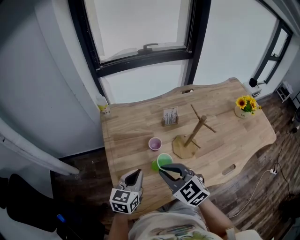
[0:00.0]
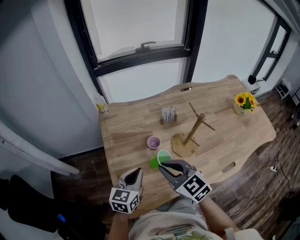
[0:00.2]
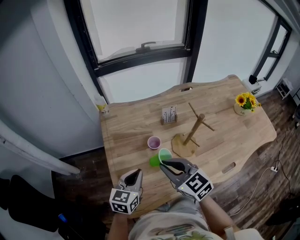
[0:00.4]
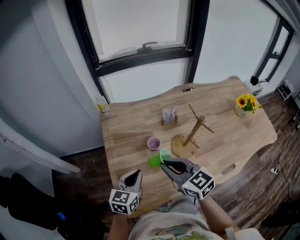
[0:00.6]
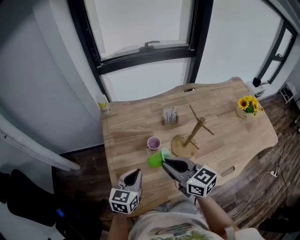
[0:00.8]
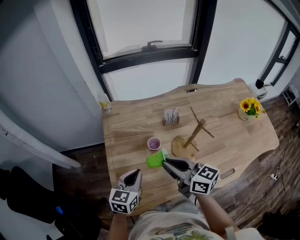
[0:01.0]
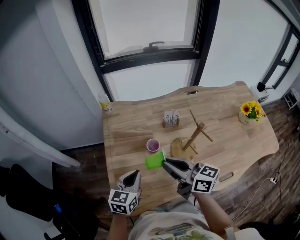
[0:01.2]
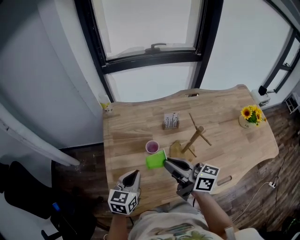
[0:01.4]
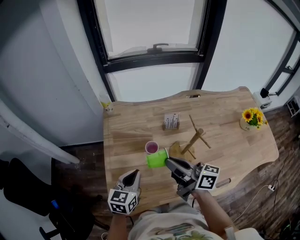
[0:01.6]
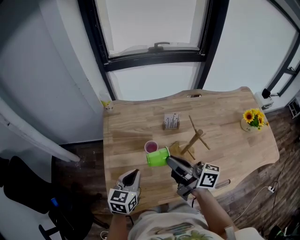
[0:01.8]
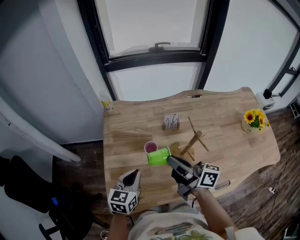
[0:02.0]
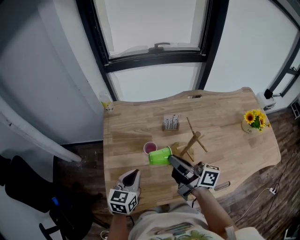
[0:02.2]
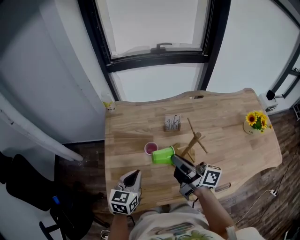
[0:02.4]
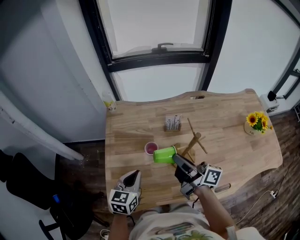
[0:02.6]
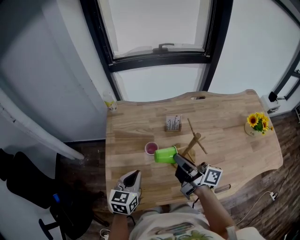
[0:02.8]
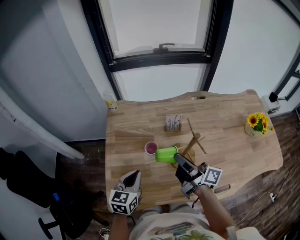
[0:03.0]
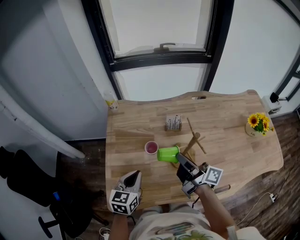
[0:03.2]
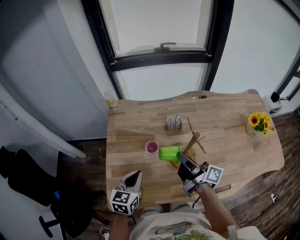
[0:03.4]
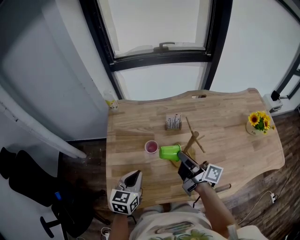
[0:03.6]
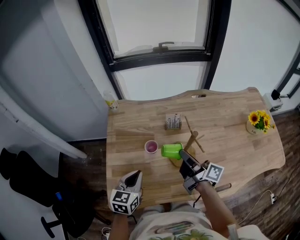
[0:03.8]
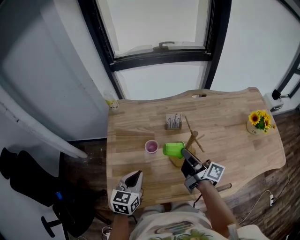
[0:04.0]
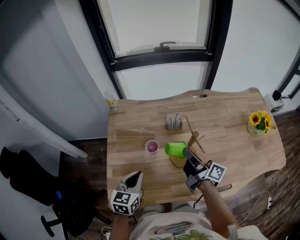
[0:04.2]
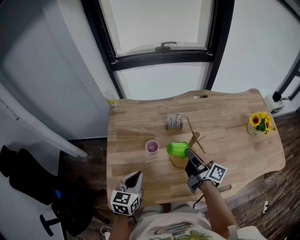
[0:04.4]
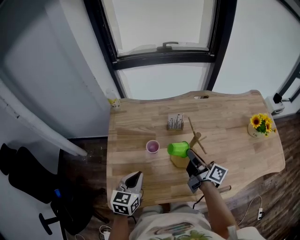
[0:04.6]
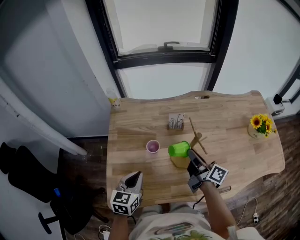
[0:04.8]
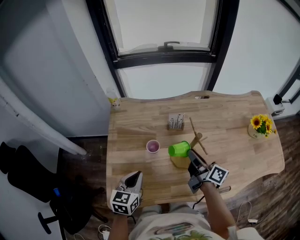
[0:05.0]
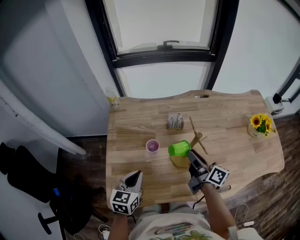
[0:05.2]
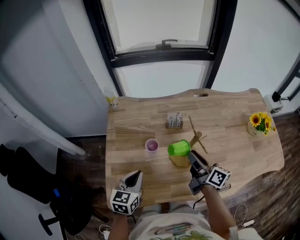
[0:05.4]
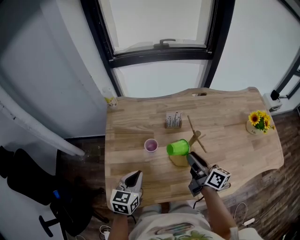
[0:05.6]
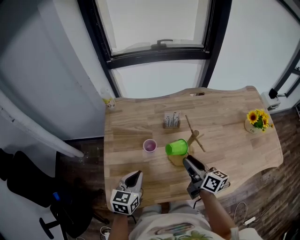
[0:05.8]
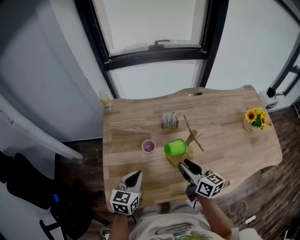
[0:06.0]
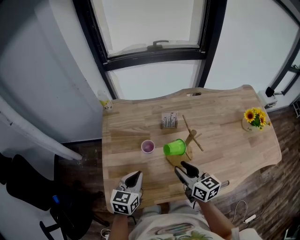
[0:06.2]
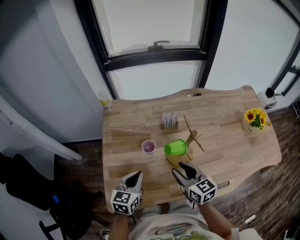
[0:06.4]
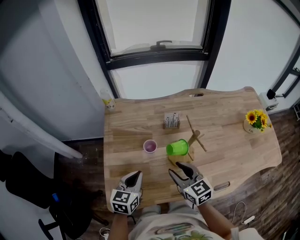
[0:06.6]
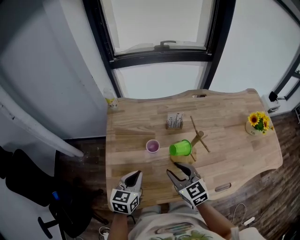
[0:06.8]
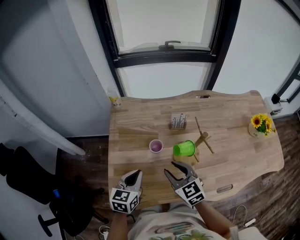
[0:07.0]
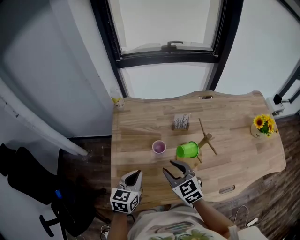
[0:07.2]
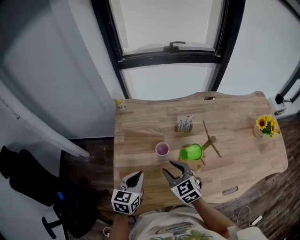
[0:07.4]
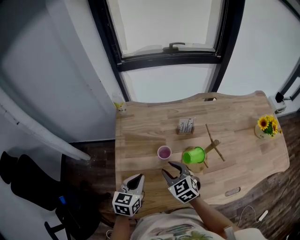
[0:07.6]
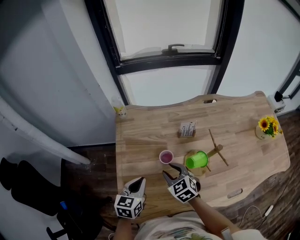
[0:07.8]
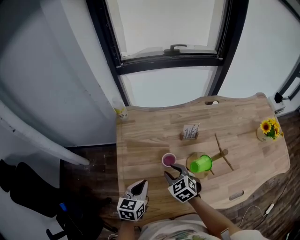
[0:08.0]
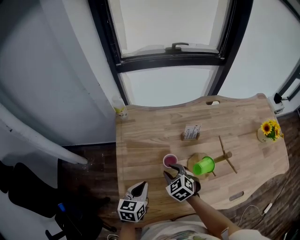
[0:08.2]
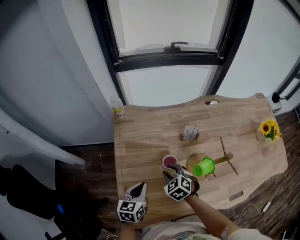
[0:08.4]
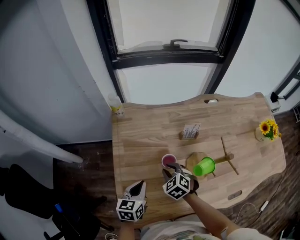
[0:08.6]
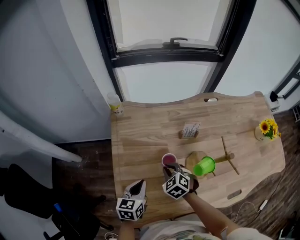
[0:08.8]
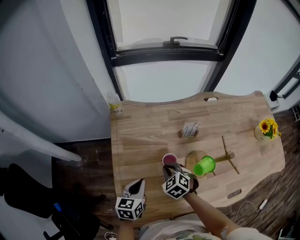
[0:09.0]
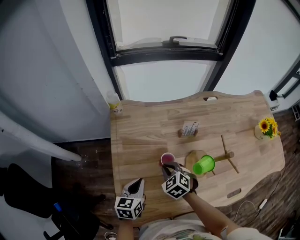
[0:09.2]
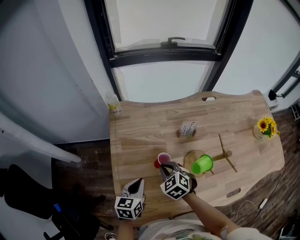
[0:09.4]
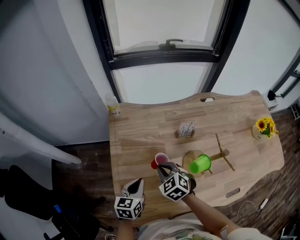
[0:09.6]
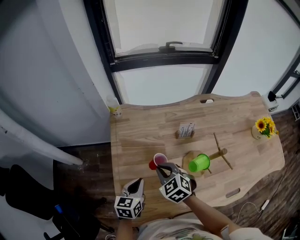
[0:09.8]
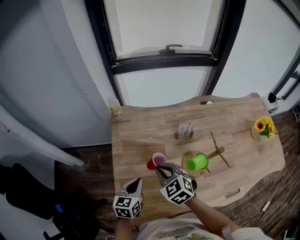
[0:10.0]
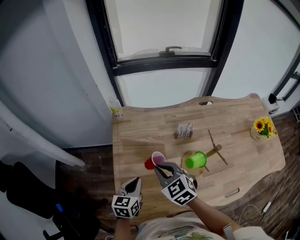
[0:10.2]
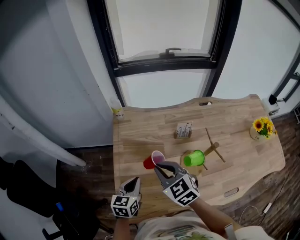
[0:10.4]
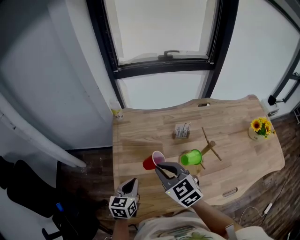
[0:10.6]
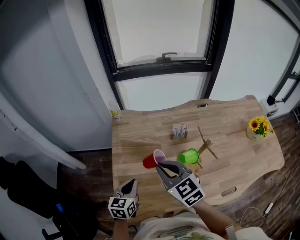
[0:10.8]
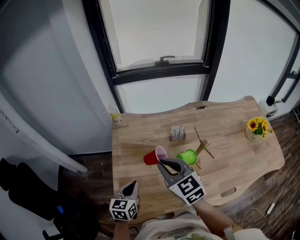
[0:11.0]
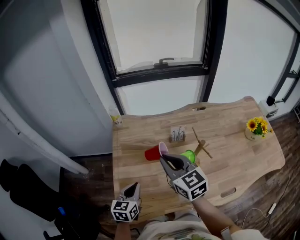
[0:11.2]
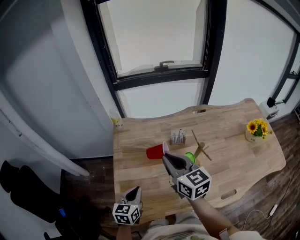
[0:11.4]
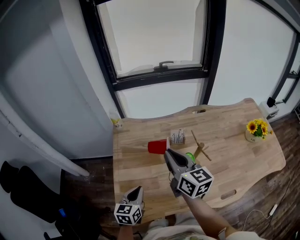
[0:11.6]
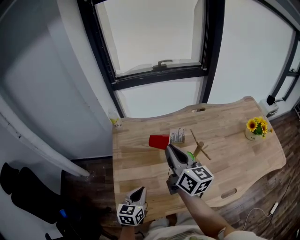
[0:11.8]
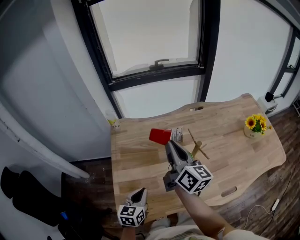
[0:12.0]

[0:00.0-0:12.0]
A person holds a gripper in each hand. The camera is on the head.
0:00.0 to 0:01.6: The right gripper moves to the right and upward, about 10 cm, and rotates around the line of its fingers by approximately 50 degrees, clockwise from behind.
0:01.6 to 0:03.0: The right gripper goes some 5 cm to the right.
0:03.0 to 0:04.4: The right gripper shifts some 5 cm to the right.
0:04.4 to 0:06.0: The right gripper heads backward, covering roughly 5 cm, rotates roughly 30 degrees, and opens up.
0:06.0 to 0:07.6: The right gripper is displaced to the left by roughly 15 cm, and rolls counterclockwise, seen from behind, by about 40 degrees; the left gripper moves to the left, about 5 cm.
0:07.6 to 0:09.0: The left gripper is displaced downward by about 5 cm. The right gripper heads downward and forward, covering some 10 cm, changes its angle by roughly 20 degrees, and closes up.
0:09.0 to 0:10.4: The right gripper heads upward, covering some 20 cm, and rotates approximately 30 degrees. The left gripper travels upward by some 5 cm.
0:10.4 to 0:12.0: The left gripper travels to the right and backward by some 10 cm; the right gripper moves to the right and upward, some 20 cm, and points its fingers roughly 40 degrees further upward.

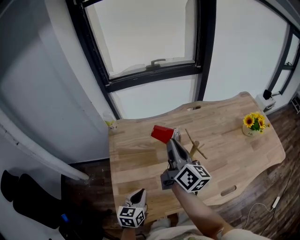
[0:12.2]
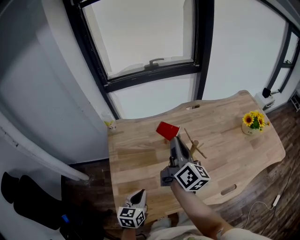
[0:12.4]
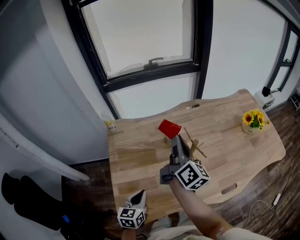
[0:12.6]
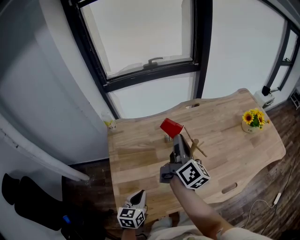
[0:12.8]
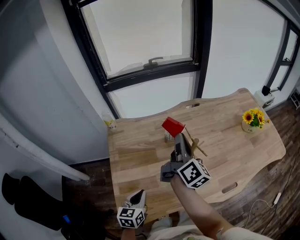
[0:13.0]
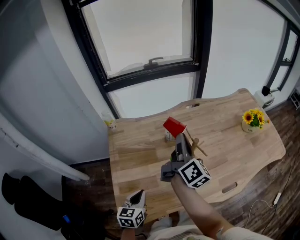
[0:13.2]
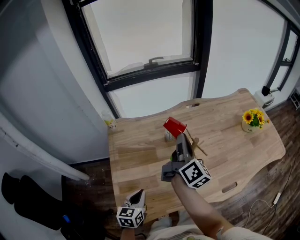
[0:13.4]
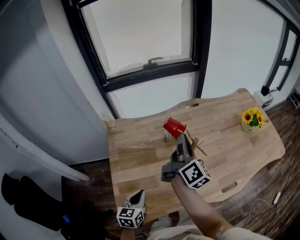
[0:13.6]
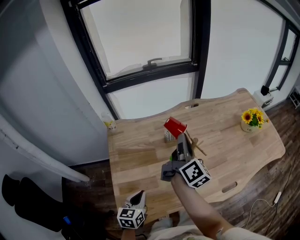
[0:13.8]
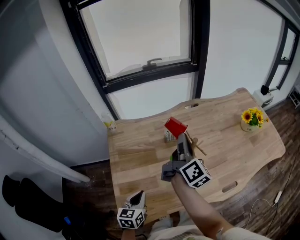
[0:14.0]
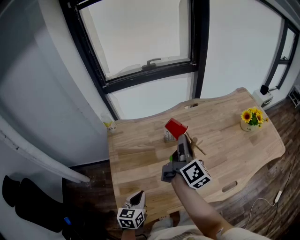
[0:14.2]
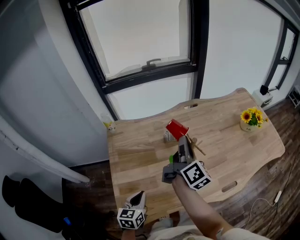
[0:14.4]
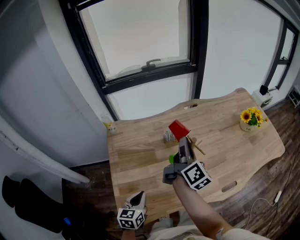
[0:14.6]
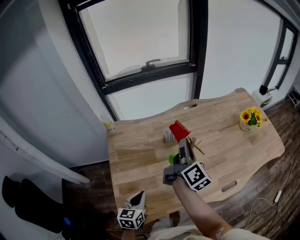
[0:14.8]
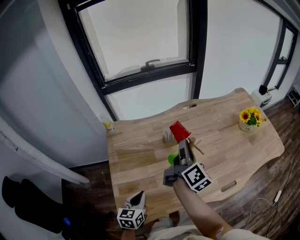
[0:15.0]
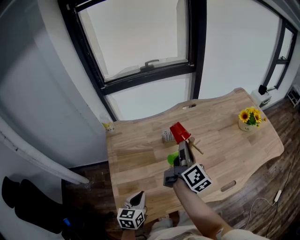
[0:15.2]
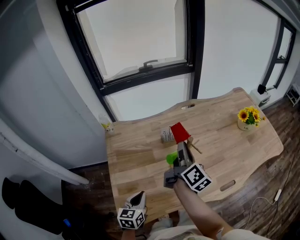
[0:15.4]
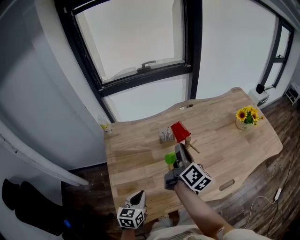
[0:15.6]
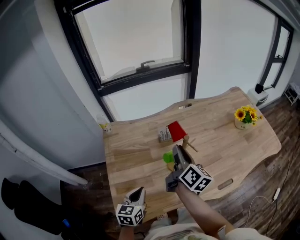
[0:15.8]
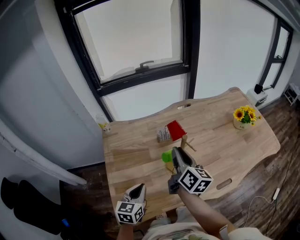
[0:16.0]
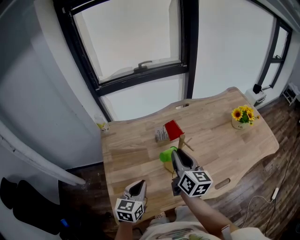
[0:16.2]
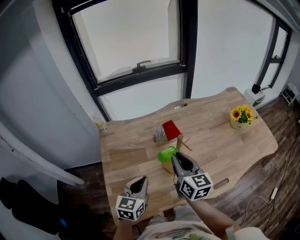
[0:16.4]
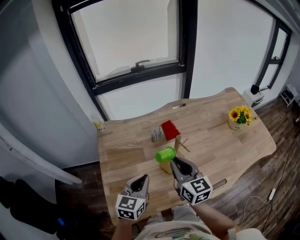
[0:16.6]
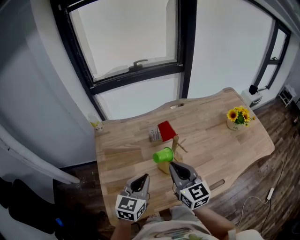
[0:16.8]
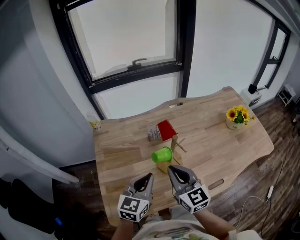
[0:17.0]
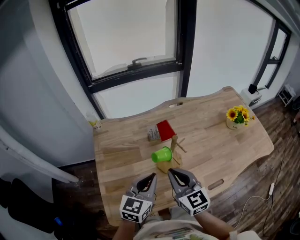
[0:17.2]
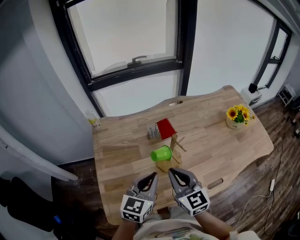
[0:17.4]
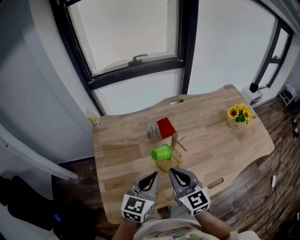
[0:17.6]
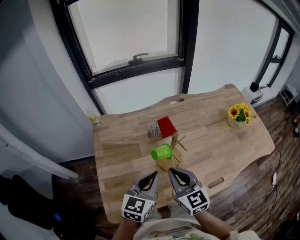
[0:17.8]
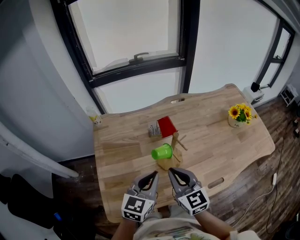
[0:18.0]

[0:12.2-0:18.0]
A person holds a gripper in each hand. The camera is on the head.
0:12.2 to 0:13.6: The right gripper goes approximately 5 cm to the right.
0:13.6 to 0:15.0: The grippers move only a little.
0:15.0 to 0:16.6: The left gripper goes about 15 cm upward, to the right and forward, while the right gripper is displaced backward by some 10 cm, and rotates around the line of its fingers by about 50 degrees, counterclockwise from behind.
0:16.6 to 0:18.0: The left gripper travels to the right by roughly 5 cm.

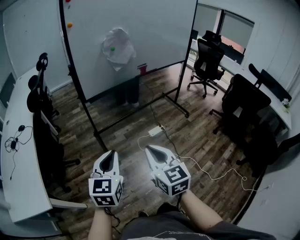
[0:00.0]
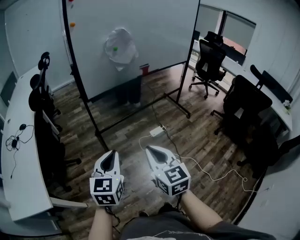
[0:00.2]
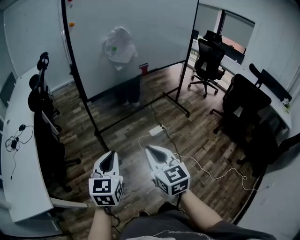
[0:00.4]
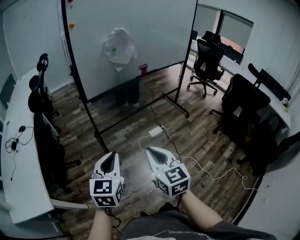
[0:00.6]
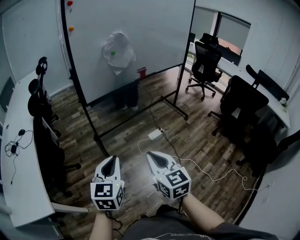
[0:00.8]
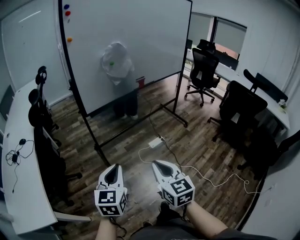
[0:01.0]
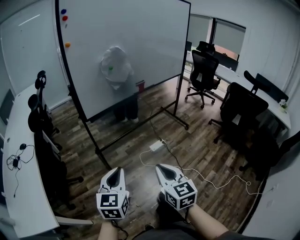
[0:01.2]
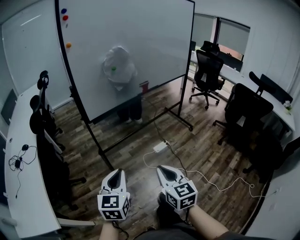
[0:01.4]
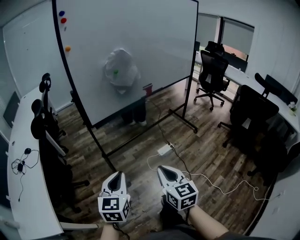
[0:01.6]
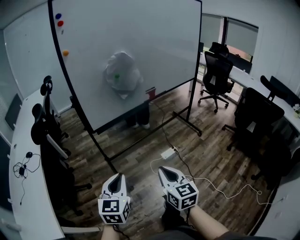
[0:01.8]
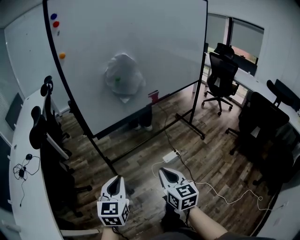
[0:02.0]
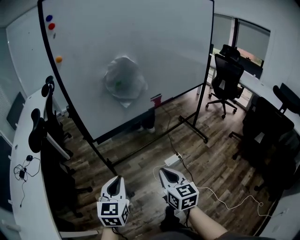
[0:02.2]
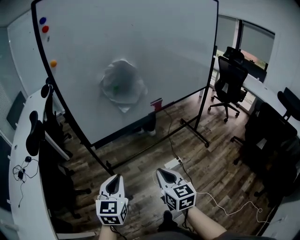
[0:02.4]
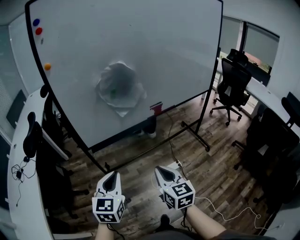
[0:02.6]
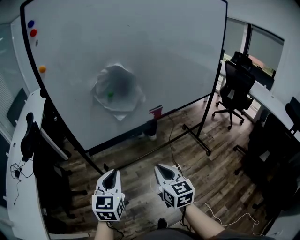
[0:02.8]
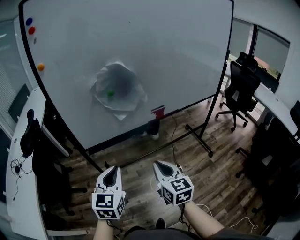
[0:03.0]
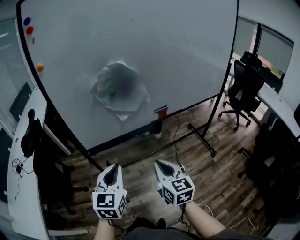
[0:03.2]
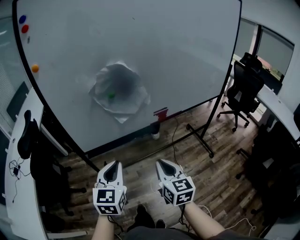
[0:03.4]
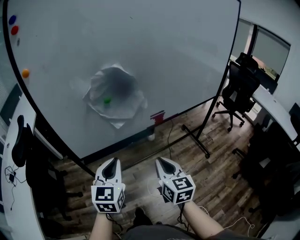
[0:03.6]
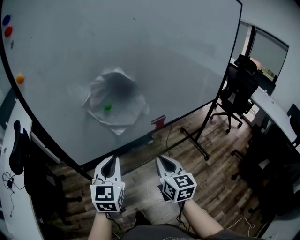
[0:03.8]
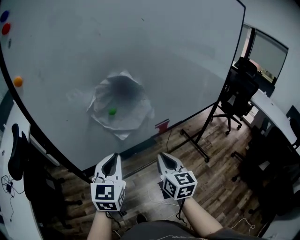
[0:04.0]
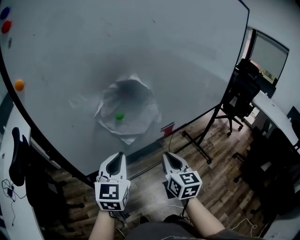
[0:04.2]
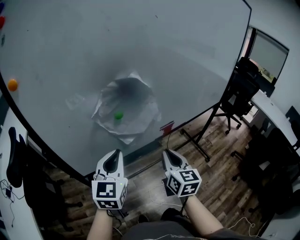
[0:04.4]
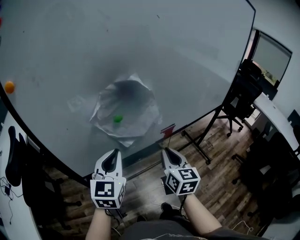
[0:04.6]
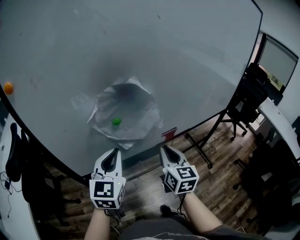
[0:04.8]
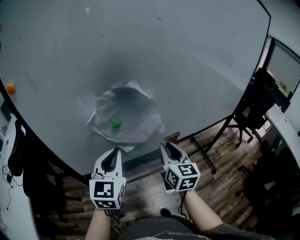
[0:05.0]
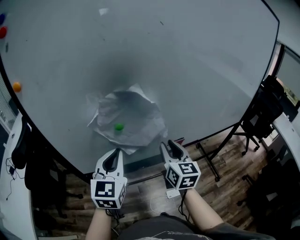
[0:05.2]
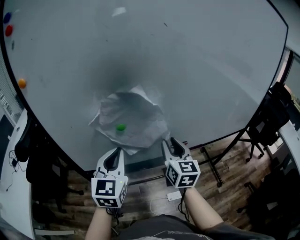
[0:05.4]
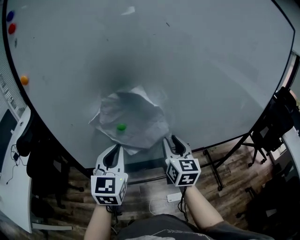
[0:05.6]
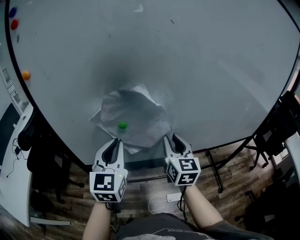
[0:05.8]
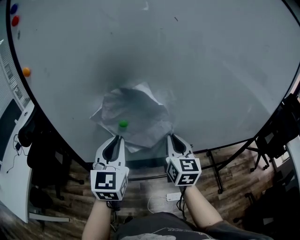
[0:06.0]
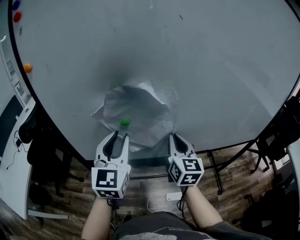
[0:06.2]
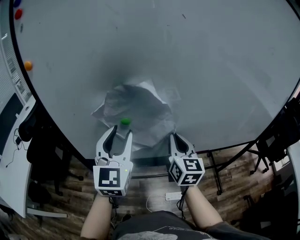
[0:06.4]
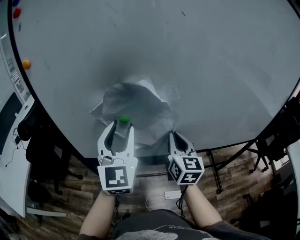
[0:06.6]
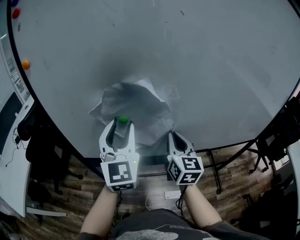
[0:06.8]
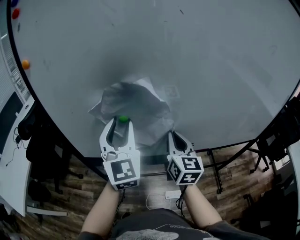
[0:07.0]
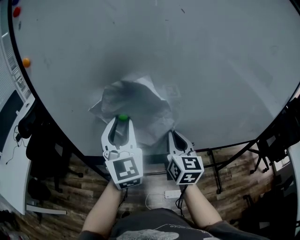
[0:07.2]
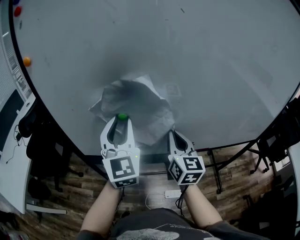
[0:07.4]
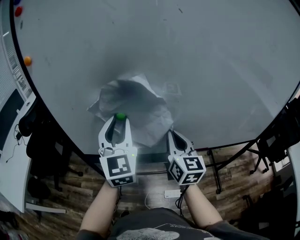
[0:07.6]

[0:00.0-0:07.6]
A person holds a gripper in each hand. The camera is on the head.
0:00.0 to 0:01.6: Both grippers travel together forward, about 5 cm.
0:01.6 to 0:03.0: The right gripper heads forward, covering some 30 cm; the left gripper goes about 30 cm forward and to the right.
0:03.0 to 0:04.6: The two grippers go about 25 cm forward.
0:04.6 to 0:06.0: The right gripper goes roughly 15 cm forward and upward, and swivels approximately 20 degrees. Meanwhile the left gripper is displaced upward by approximately 5 cm, and turns by about 20 degrees.
0:06.0 to 0:07.6: The left gripper opens its fingers.
